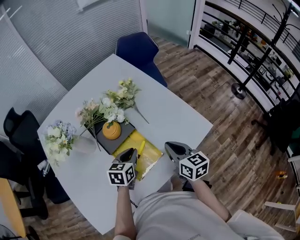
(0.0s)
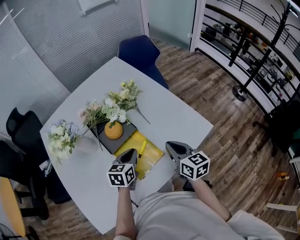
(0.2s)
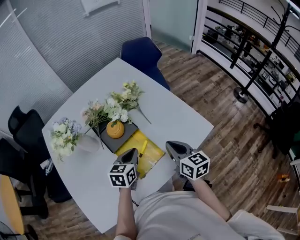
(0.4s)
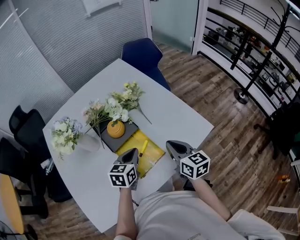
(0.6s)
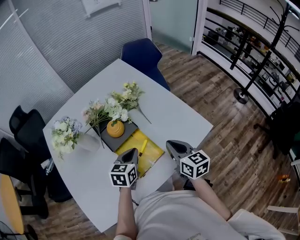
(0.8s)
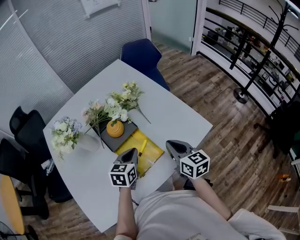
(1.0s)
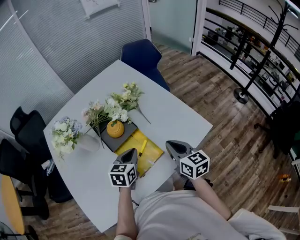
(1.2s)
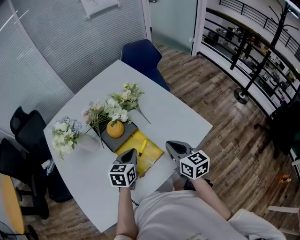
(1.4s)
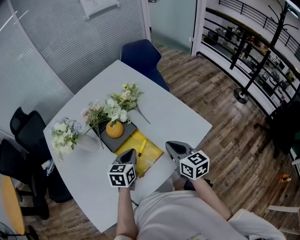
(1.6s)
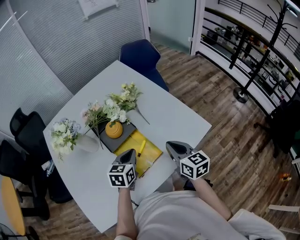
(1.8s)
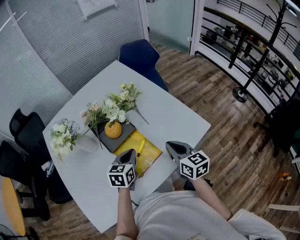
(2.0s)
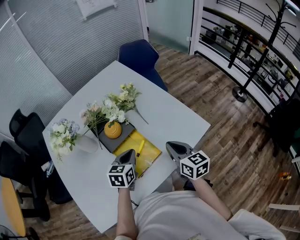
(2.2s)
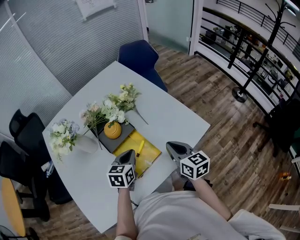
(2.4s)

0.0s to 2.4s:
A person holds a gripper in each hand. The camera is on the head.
0.0s to 2.4s: The grippers move only a little.

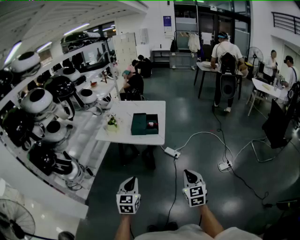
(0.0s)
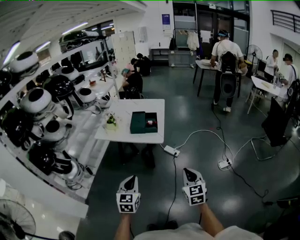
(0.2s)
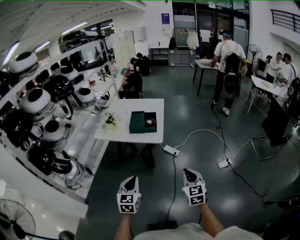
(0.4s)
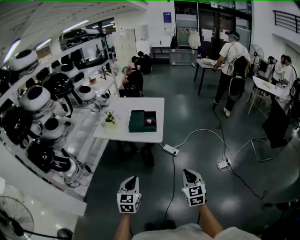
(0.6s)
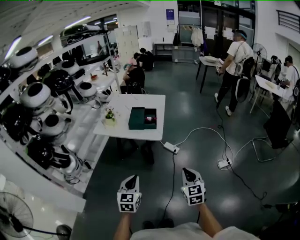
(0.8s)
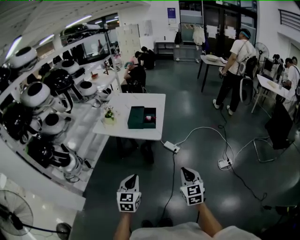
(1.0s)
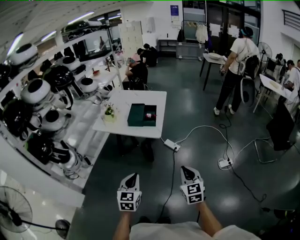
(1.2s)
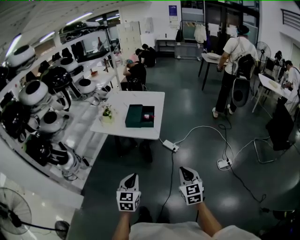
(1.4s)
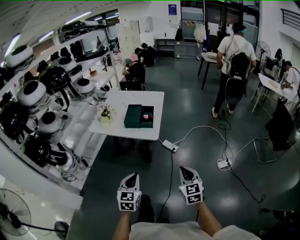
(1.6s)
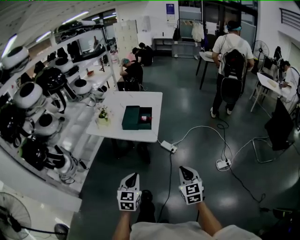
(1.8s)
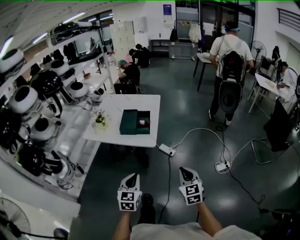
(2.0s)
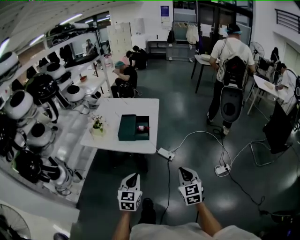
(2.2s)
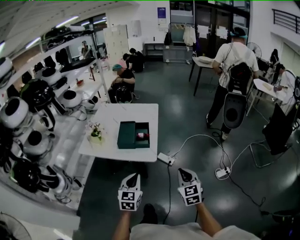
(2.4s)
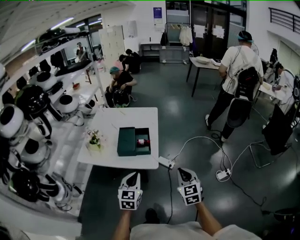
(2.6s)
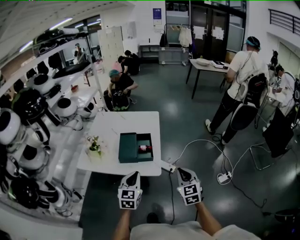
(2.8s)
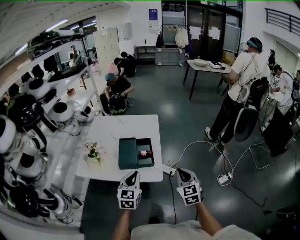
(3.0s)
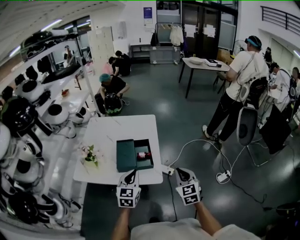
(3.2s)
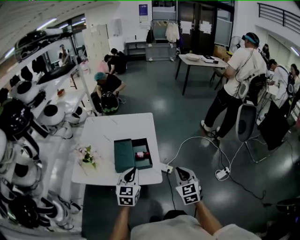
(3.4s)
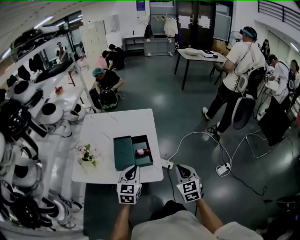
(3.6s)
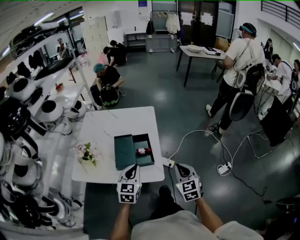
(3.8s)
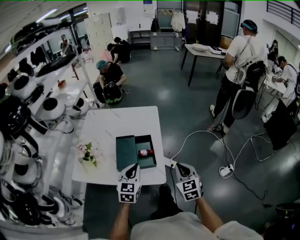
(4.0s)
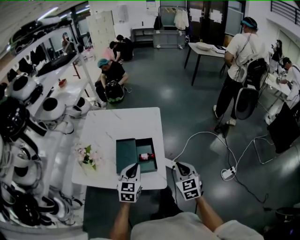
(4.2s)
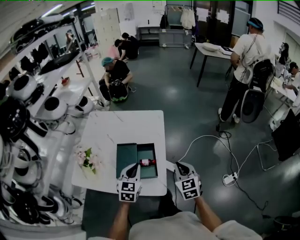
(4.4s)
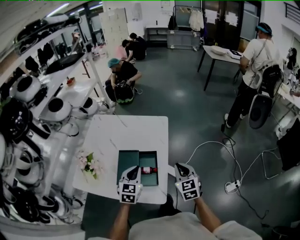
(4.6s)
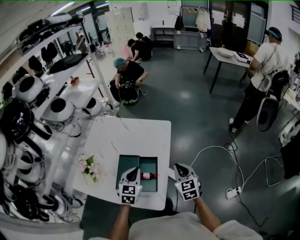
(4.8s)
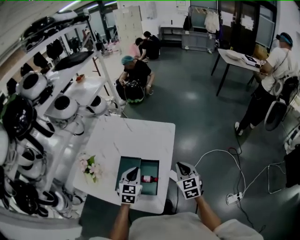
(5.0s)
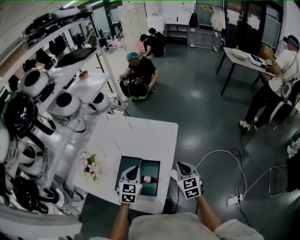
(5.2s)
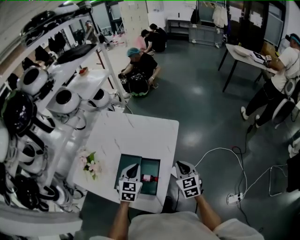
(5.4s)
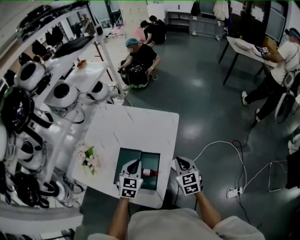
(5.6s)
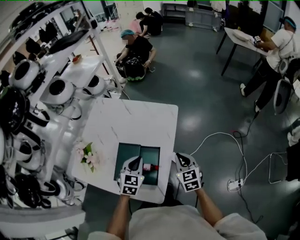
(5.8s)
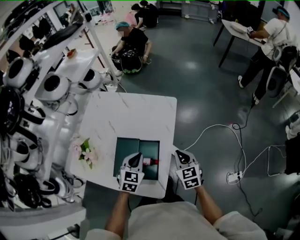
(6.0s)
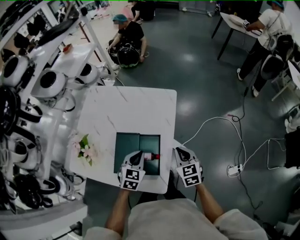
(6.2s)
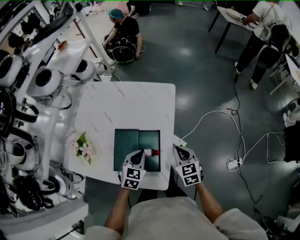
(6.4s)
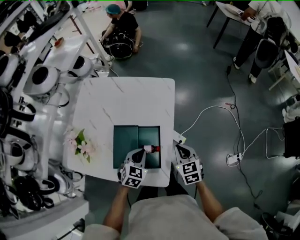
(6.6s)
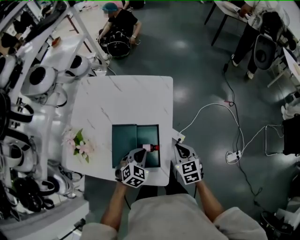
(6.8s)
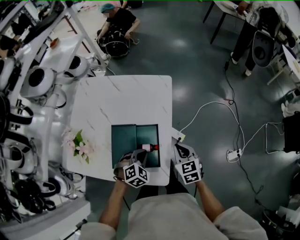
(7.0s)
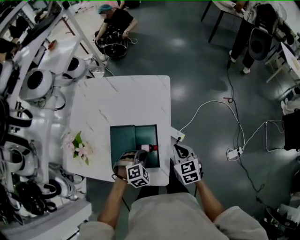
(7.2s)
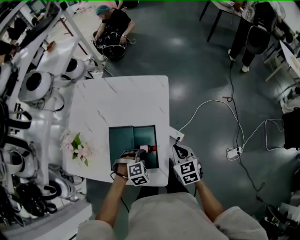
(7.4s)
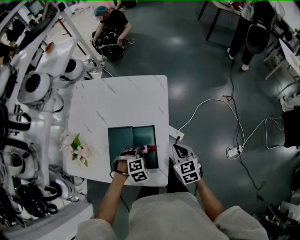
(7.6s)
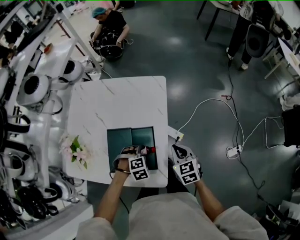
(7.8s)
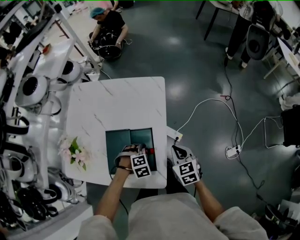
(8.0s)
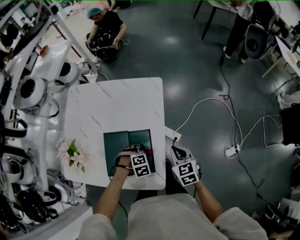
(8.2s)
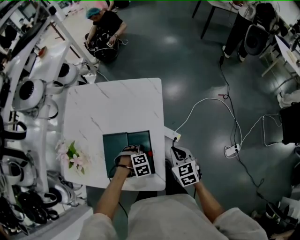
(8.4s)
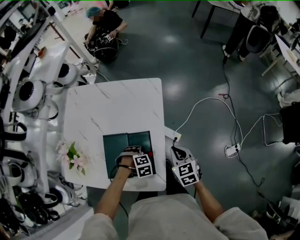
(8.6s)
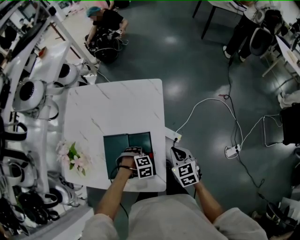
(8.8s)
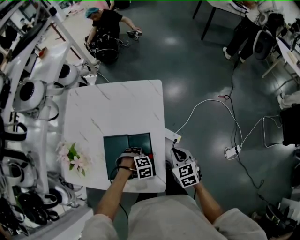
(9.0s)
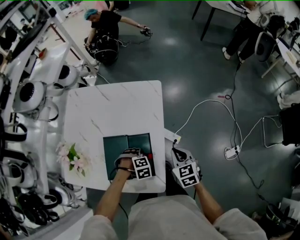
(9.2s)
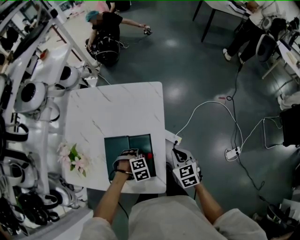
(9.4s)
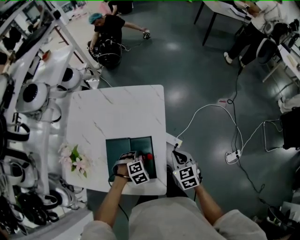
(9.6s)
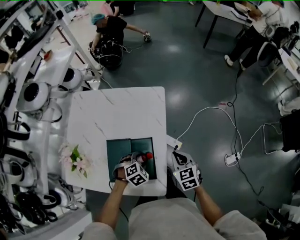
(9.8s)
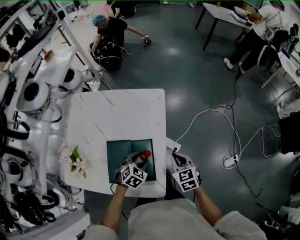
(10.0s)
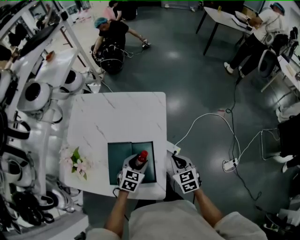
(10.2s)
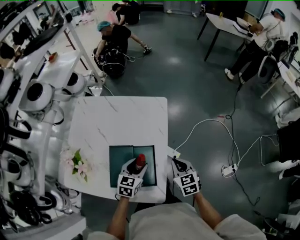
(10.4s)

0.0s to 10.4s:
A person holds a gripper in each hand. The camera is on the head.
0.0s to 1.4s: The right gripper moves approximately 5 cm. The left gripper shifts about 10 cm to the right.
1.4s to 3.0s: Both grippers travel together forward, some 35 cm.
3.0s to 4.4s: Both grippers travel together forward, roughly 20 cm.
4.4s to 6.0s: The grippers both shift forward and downward by some 15 cm.
6.0s to 7.4s: The right gripper moves approximately 5 cm, while the left gripper moves downward and backward, roughly 15 cm, and rolls clockwise, seen from behind, by about 50 degrees.
7.4s to 9.0s: The left gripper heads downward, covering approximately 5 cm, swivels roughly 20 degrees, and opens.
9.0s to 10.4s: The left gripper moves upward, roughly 15 cm, and points its fingers some 50 degrees further upward.

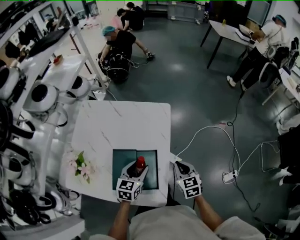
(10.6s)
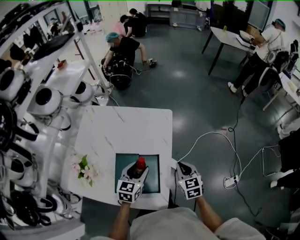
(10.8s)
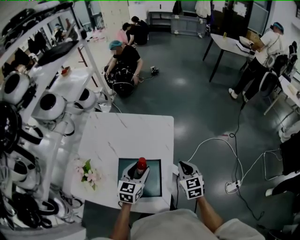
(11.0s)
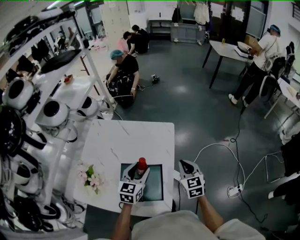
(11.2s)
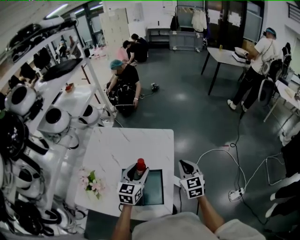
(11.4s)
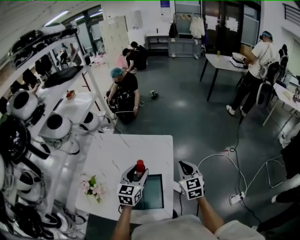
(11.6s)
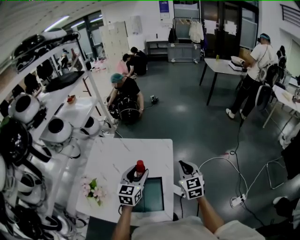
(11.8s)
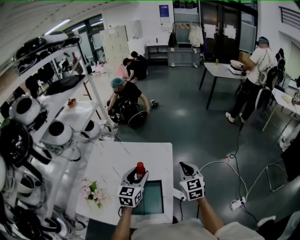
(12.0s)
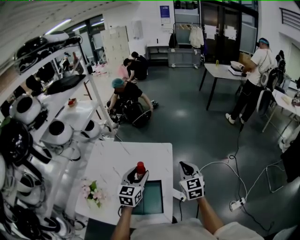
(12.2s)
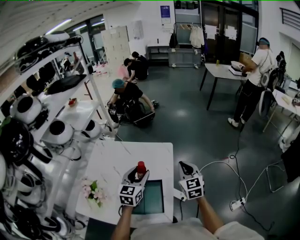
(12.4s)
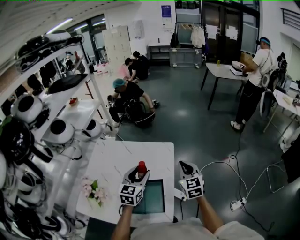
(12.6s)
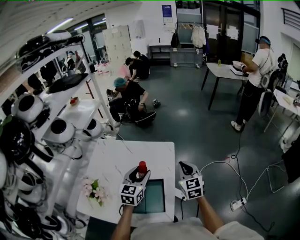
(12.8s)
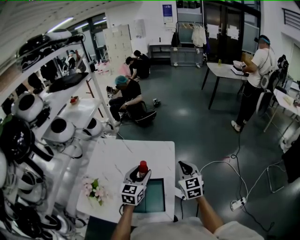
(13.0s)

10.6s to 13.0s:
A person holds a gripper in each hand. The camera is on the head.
10.6s to 11.8s: Both grippers travel together upward and forward, some 15 cm. The right gripper turns by about 20 degrees.
11.8s to 13.0s: The grippers stay close to where they were, moving slightly.

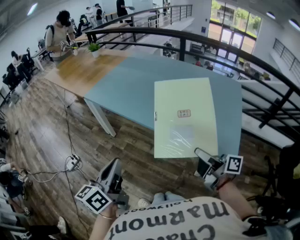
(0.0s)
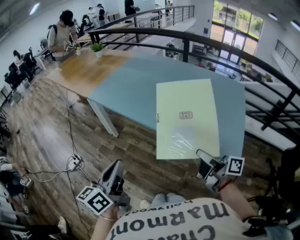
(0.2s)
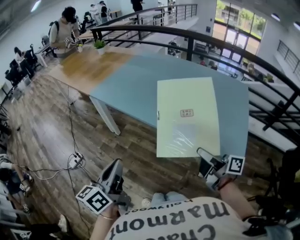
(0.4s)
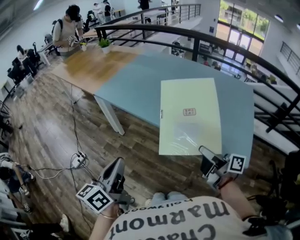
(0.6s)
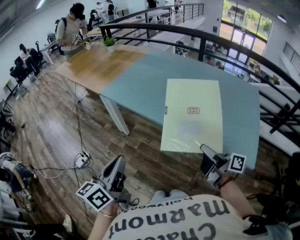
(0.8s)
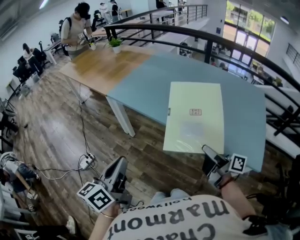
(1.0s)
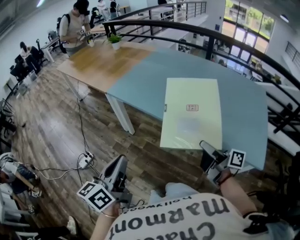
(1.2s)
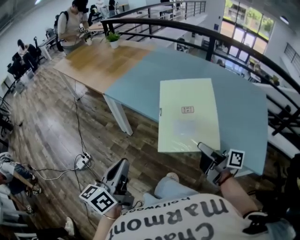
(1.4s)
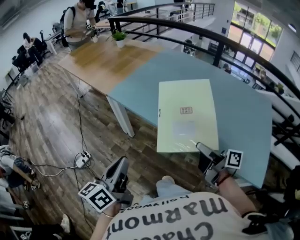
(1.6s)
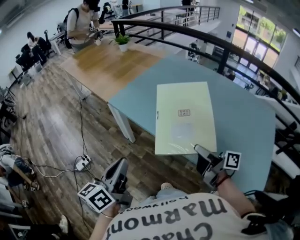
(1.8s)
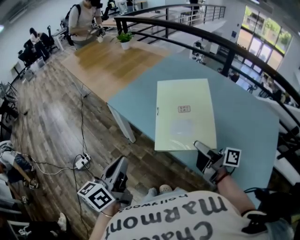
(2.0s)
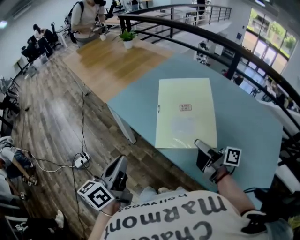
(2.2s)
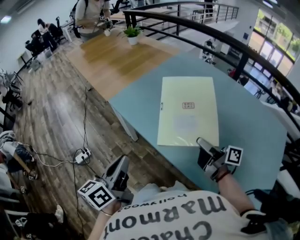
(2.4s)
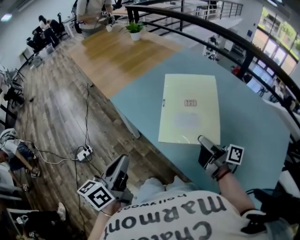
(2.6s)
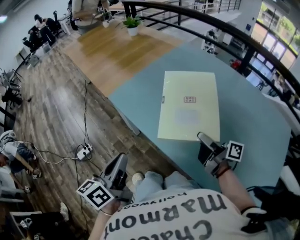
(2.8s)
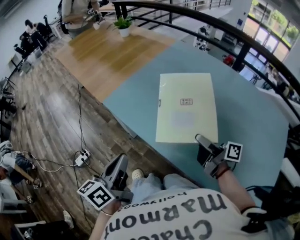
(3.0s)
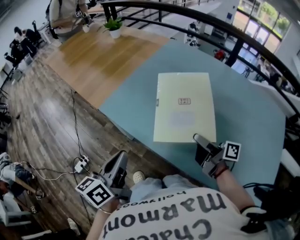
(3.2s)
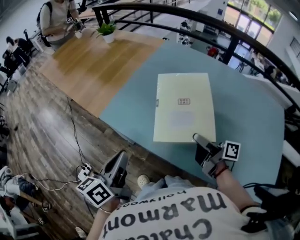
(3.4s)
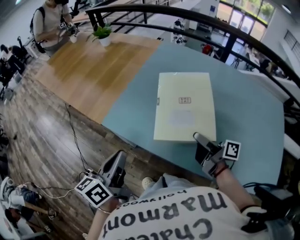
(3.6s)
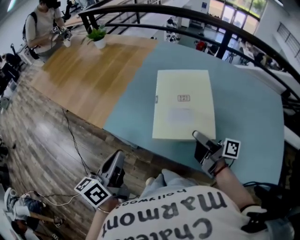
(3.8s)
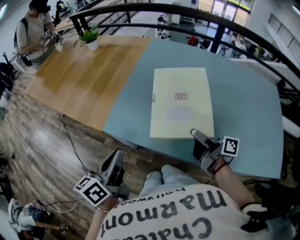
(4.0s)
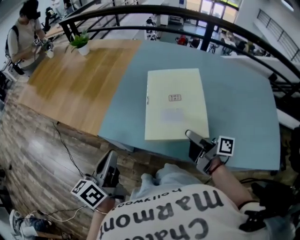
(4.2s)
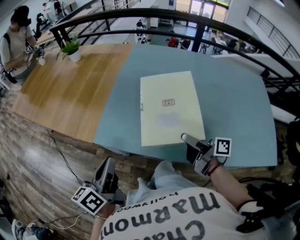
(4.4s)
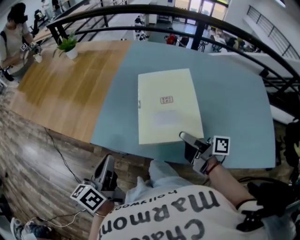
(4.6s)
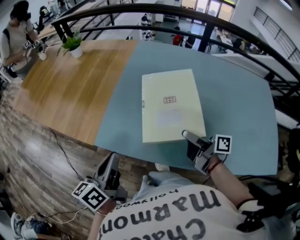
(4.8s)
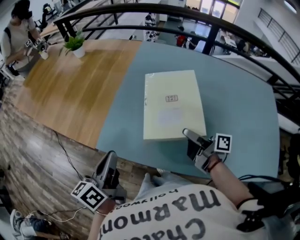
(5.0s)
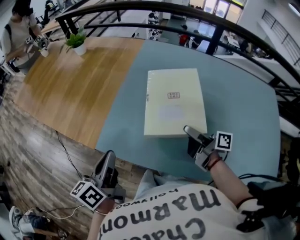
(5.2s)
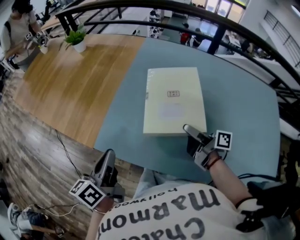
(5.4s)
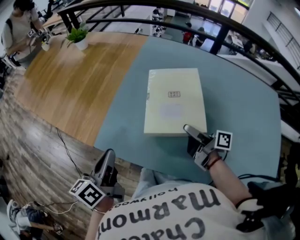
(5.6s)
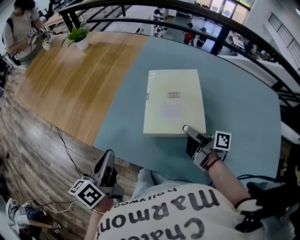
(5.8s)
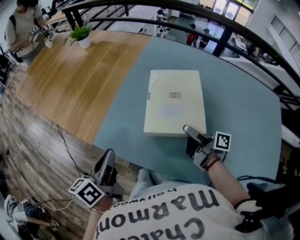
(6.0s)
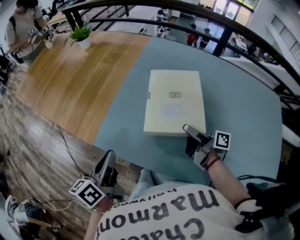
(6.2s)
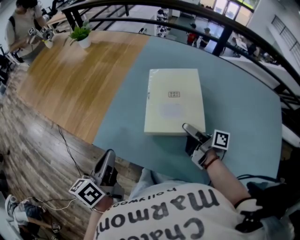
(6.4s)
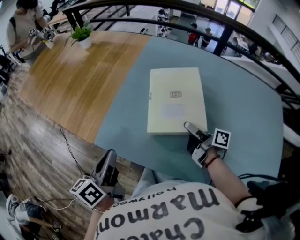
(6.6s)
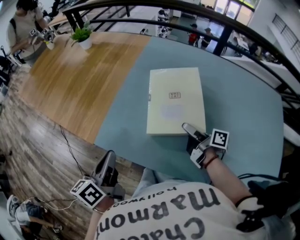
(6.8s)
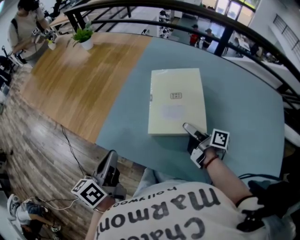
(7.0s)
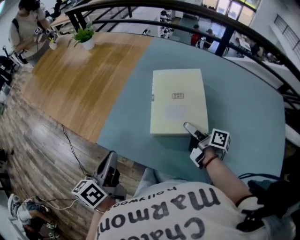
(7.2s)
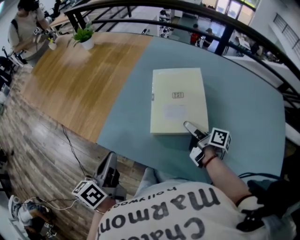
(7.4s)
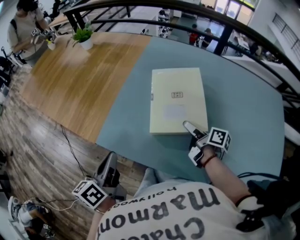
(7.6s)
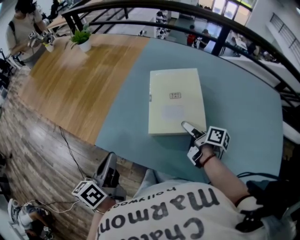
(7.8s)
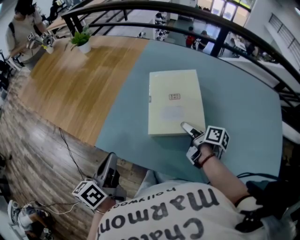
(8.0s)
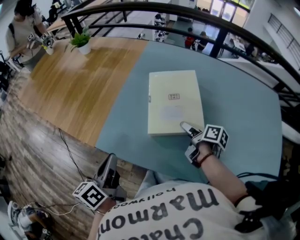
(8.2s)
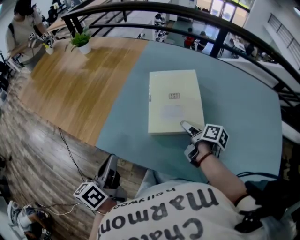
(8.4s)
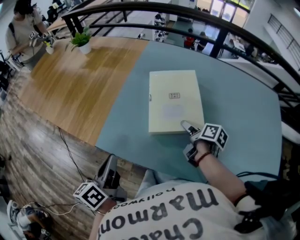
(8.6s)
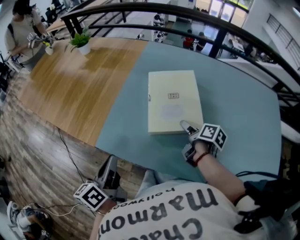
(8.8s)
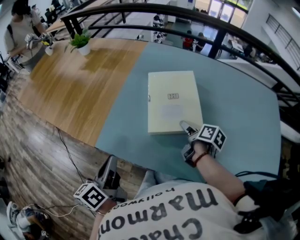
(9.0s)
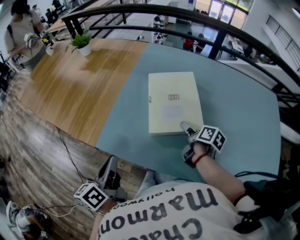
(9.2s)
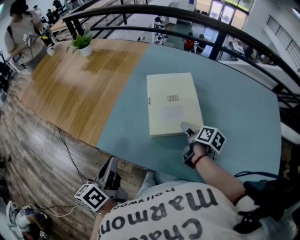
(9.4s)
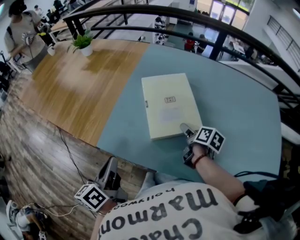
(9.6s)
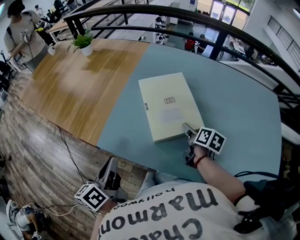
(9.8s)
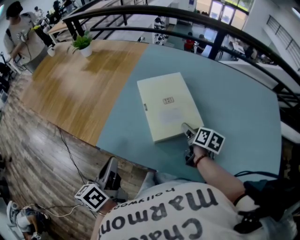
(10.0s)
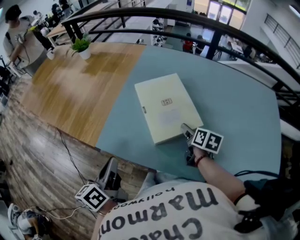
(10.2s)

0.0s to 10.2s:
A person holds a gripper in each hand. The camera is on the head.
0.0s to 1.4s: Both grippers travel together to the left and forward, some 20 cm.
1.4s to 3.0s: Both grippers travel together forward, about 25 cm.
3.0s to 4.4s: The left gripper moves forward and to the left, approximately 20 cm, and swivels approximately 20 degrees, while the right gripper shifts approximately 10 cm to the left, and changes its angle by some 20 degrees.
4.4s to 5.8s: The left gripper is displaced forward by some 5 cm, while the right gripper is displaced forward by approximately 10 cm.
5.8s to 7.2s: The grippers make only small movements.
7.2s to 8.8s: The right gripper swivels some 20 degrees.
8.8s to 10.2s: The right gripper turns by approximately 30 degrees.
